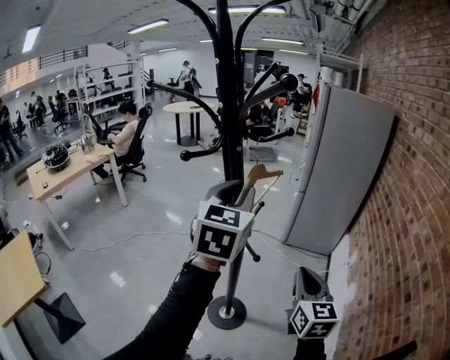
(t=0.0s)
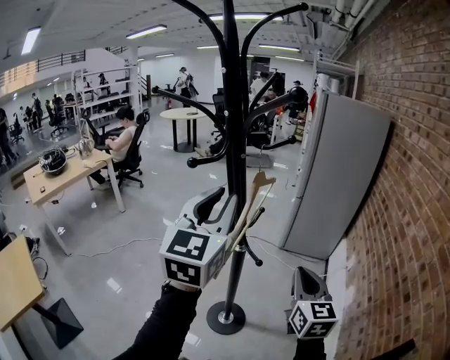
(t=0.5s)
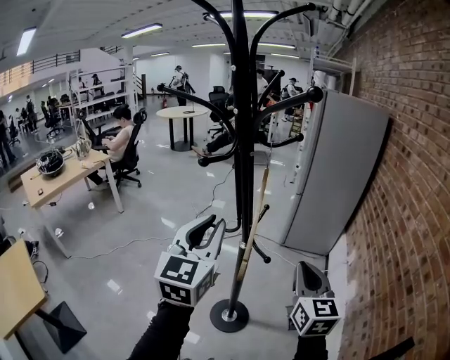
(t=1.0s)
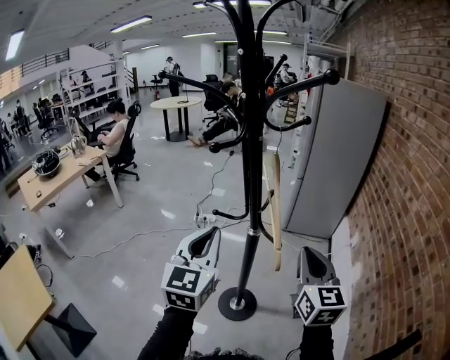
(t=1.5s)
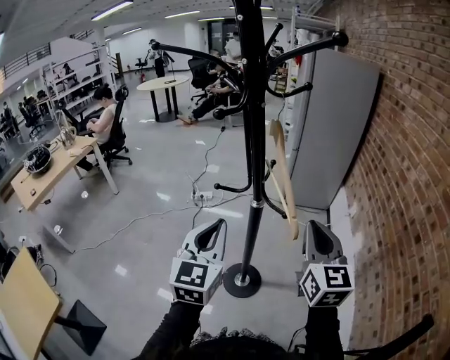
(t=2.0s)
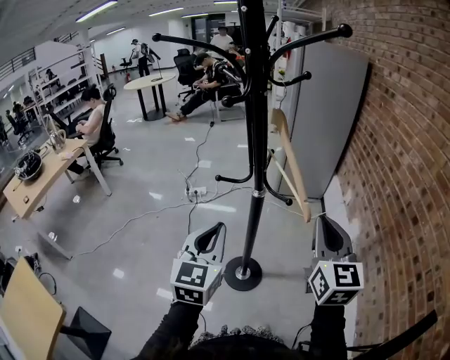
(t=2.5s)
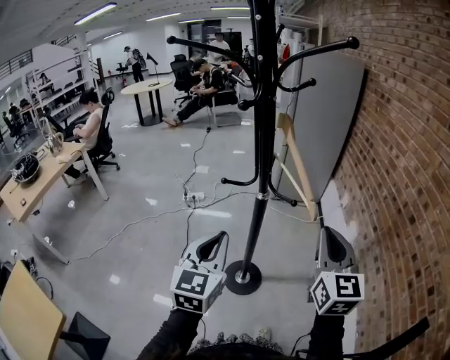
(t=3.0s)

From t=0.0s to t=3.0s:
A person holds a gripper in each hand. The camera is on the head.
From t=0.0s to t=1.5s: The right gripper goes some 5 cm to the left; the left gripper moves to the left, downward and backward, about 20 cm.
From t=1.5s to t=3.0s: The right gripper heads backward, covering some 10 cm. Meanwhile the left gripper is displaced downward and backward by about 10 cm.

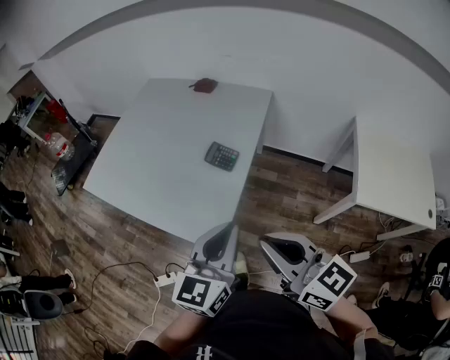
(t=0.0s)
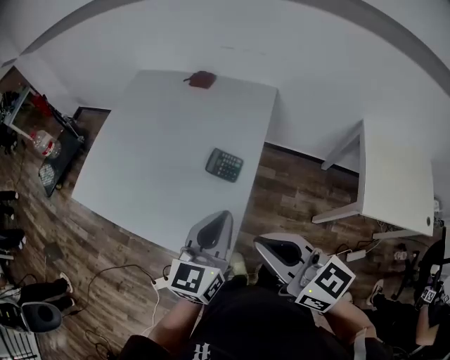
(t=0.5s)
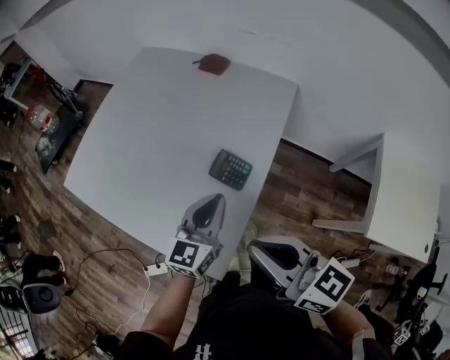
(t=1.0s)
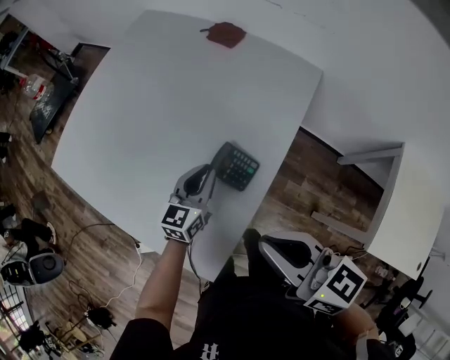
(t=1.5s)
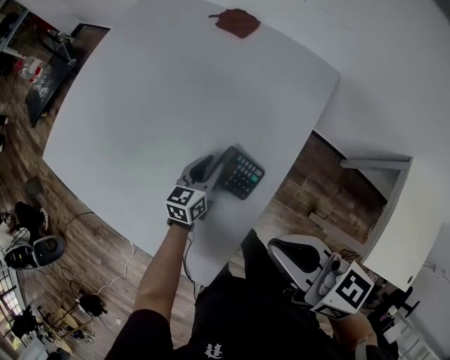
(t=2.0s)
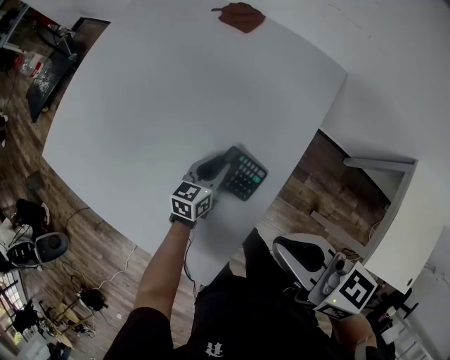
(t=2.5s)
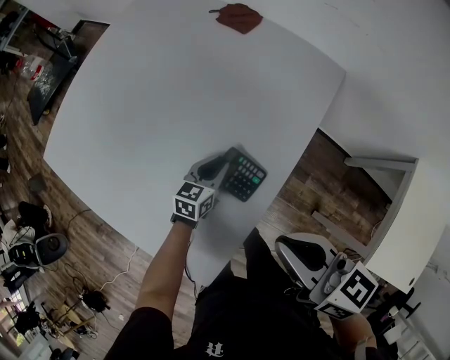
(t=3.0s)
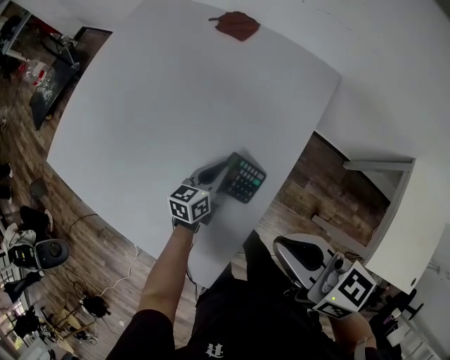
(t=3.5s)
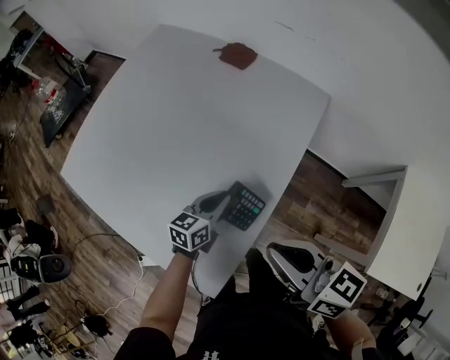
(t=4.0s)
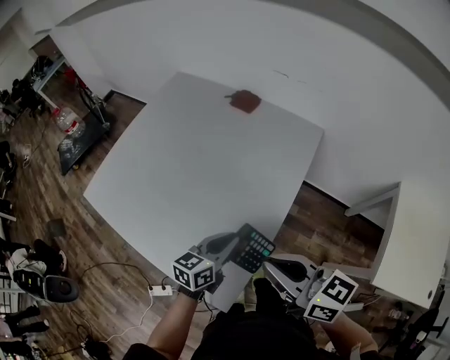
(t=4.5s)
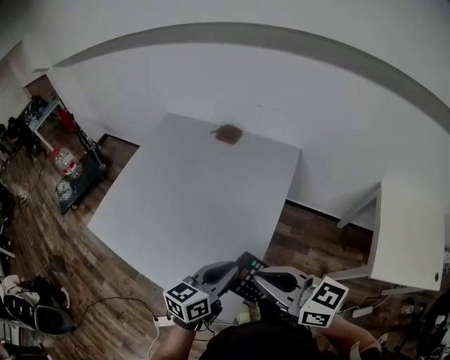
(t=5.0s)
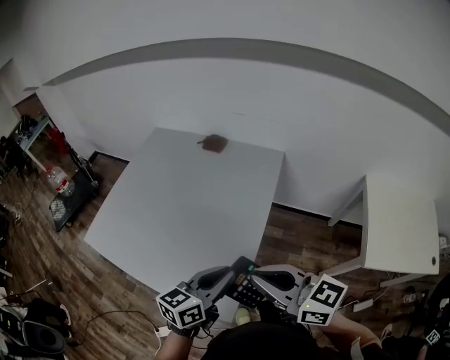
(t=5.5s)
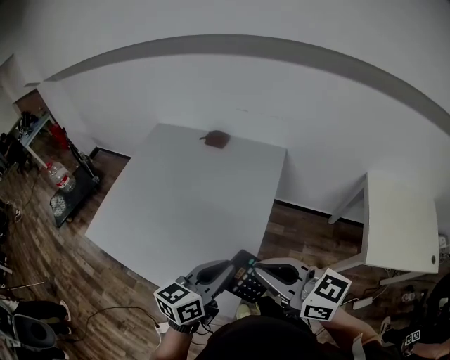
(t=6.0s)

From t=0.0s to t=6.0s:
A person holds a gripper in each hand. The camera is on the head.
From t=0.0s to t=2.0s: The left gripper shifts about 50 cm forward and downward, changes its angle by some 20 degrees, and opens. The right gripper shifts roughly 35 cm forward, and rotates some 20 degrees.
From t=2.0s to t=4.0s: The left gripper shifts roughly 10 cm upward and backward.
From t=4.0s to t=6.0s: The right gripper travels backward and upward by some 20 cm; the left gripper is displaced upward and backward by approximately 30 cm.

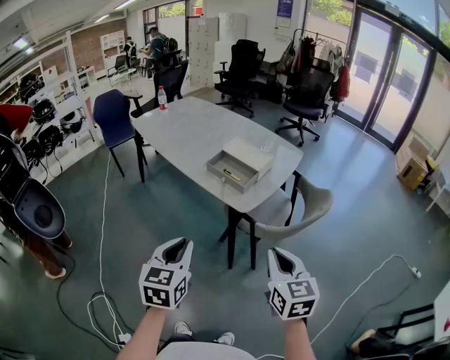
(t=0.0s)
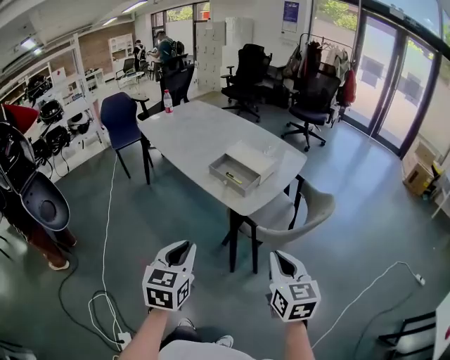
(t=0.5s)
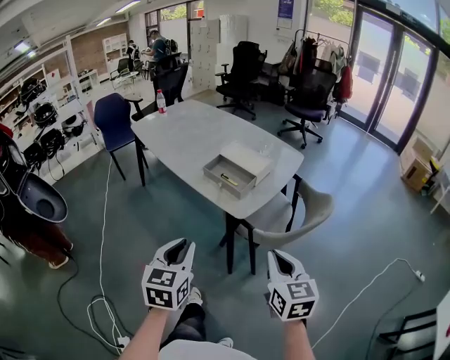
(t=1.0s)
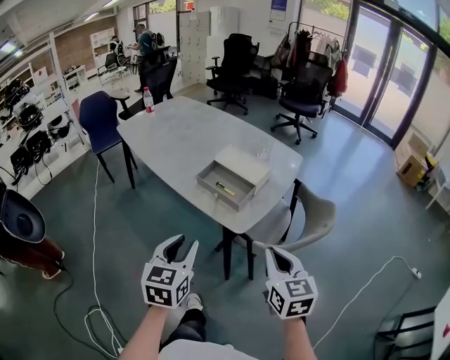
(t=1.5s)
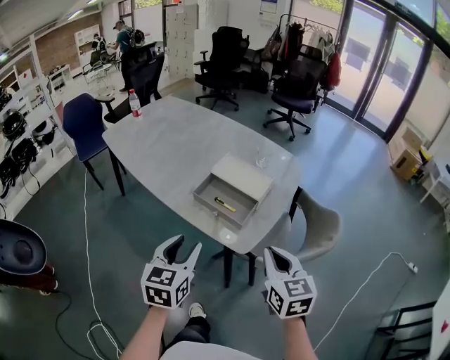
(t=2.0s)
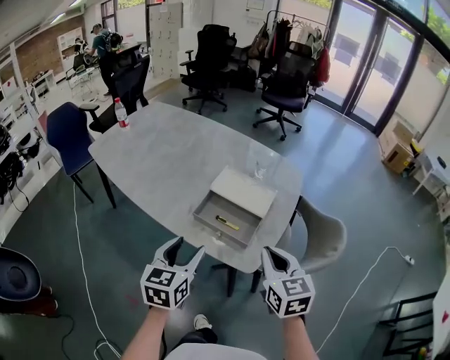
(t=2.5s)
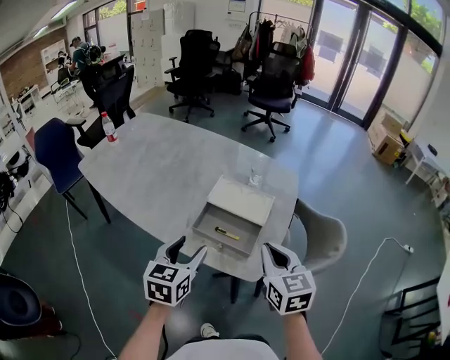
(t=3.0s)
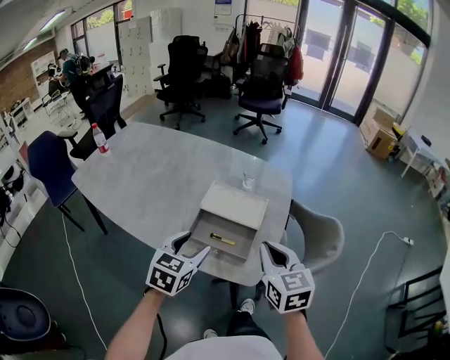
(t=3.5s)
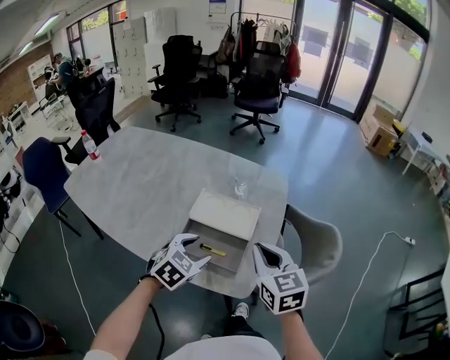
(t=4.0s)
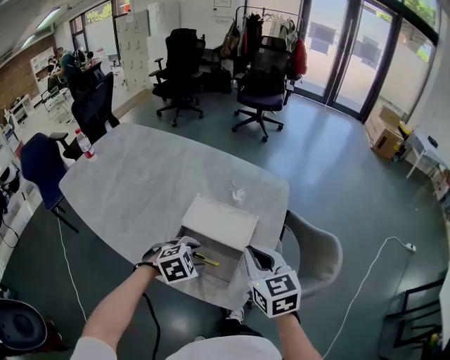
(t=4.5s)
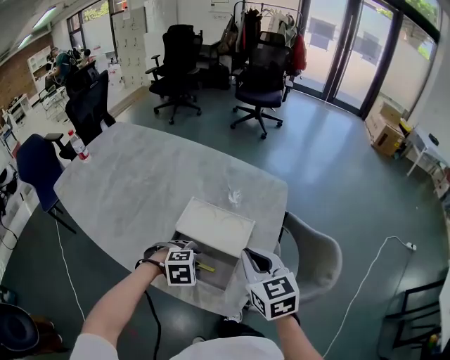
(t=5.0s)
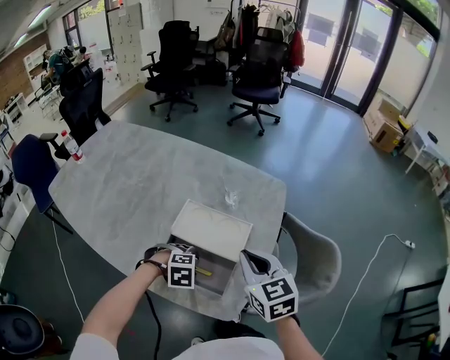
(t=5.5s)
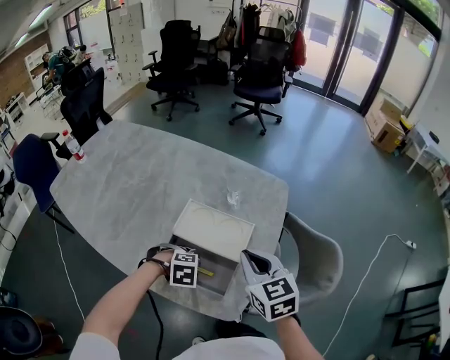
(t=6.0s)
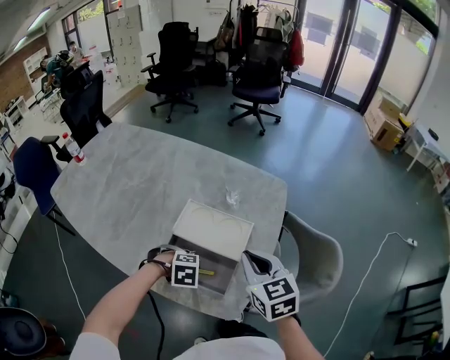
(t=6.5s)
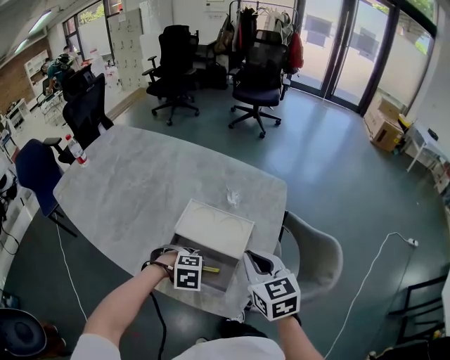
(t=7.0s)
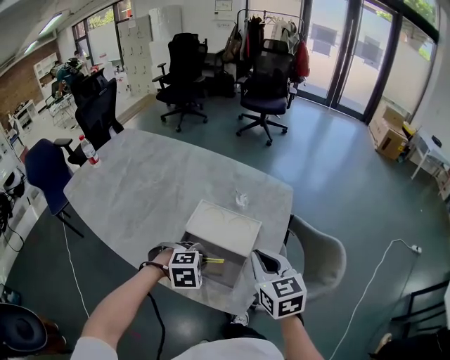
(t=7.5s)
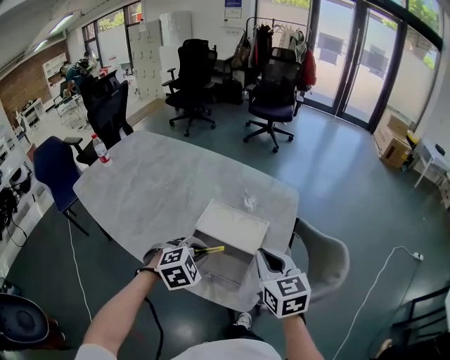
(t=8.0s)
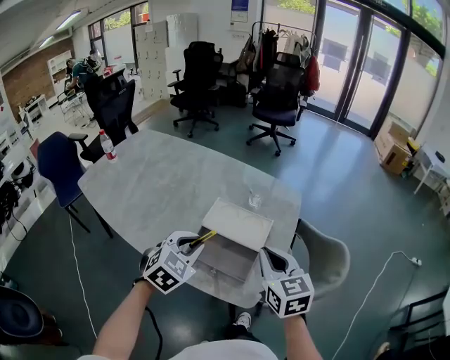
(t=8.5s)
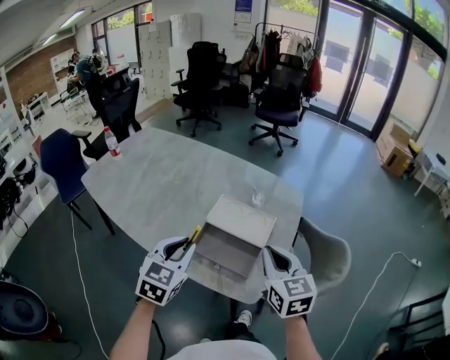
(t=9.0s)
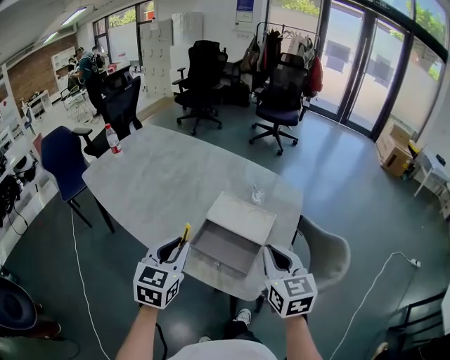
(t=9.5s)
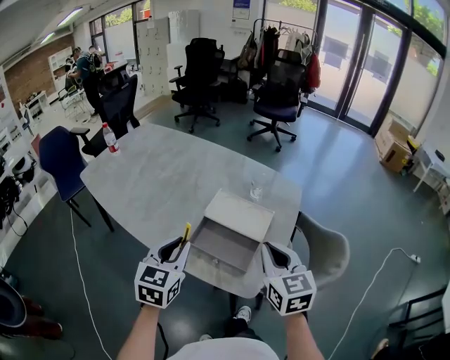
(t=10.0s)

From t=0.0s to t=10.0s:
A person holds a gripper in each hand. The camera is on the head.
From t=0.0s to t=2.0s: The two grippers go approximately 25 cm forward. The left gripper opens up.
From t=2.0s to t=4.0s: The two grippers go some 20 cm forward. The left gripper swivels some 50 degrees.
From t=4.0s to t=6.0s: The right gripper moves some 10 cm. The left gripper moves downward, approximately 15 cm, tilts its fingers roughly 30 degrees downward, and closes its fingers.
From t=6.0s to t=8.0s: The right gripper changes place by some 5 cm, while the left gripper is displaced upward by roughly 15 cm, and rotates approximately 40 degrees.
From t=8.0s to t=10.0s: The right gripper moves roughly 5 cm; the left gripper travels to the left, upward and backward by some 15 cm, and angles its fingers upward, by some 30 degrees.

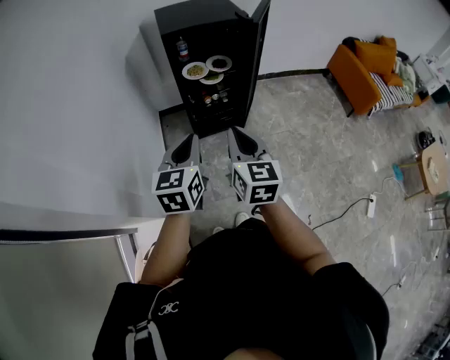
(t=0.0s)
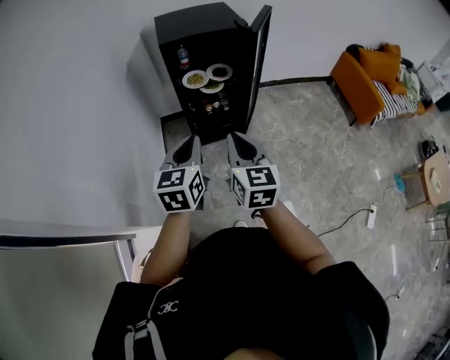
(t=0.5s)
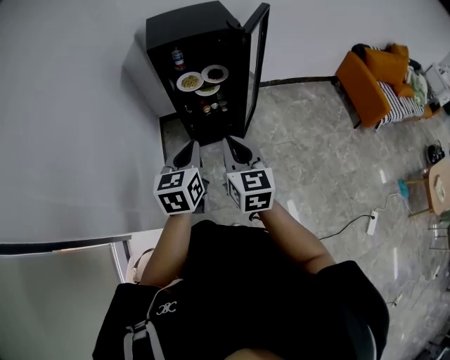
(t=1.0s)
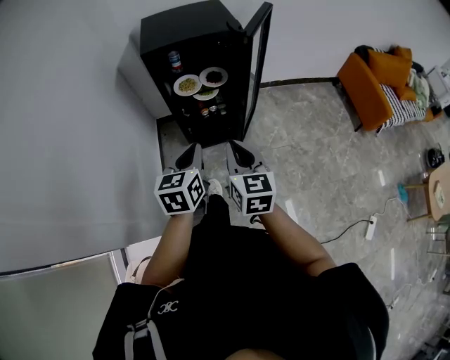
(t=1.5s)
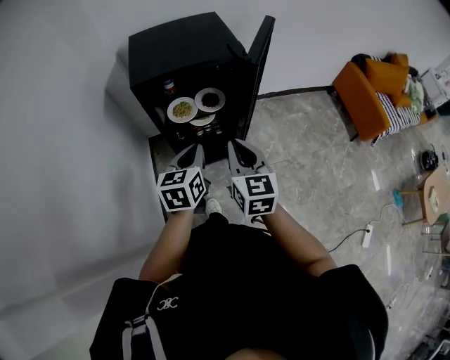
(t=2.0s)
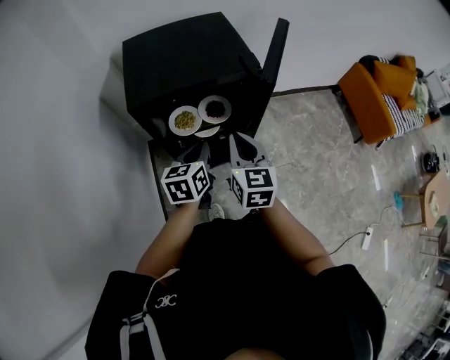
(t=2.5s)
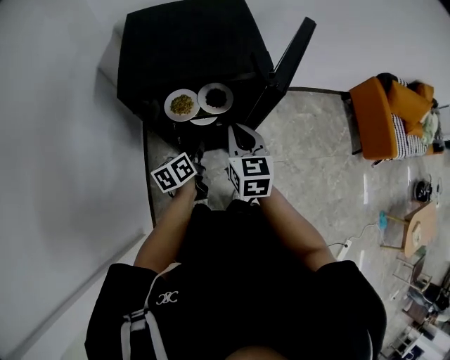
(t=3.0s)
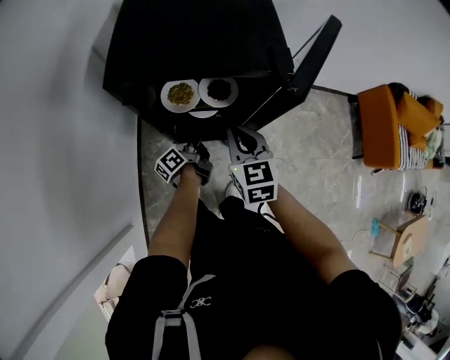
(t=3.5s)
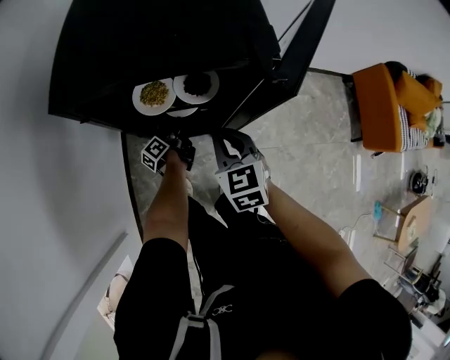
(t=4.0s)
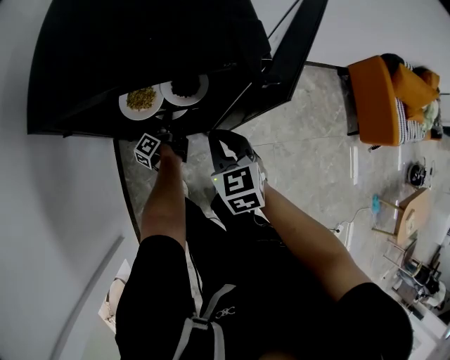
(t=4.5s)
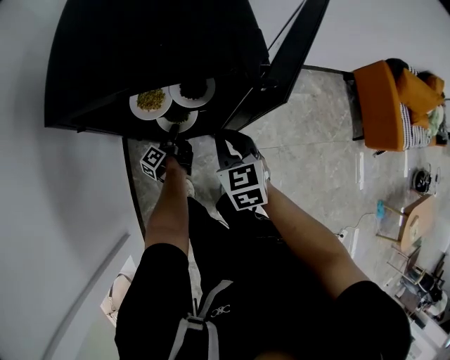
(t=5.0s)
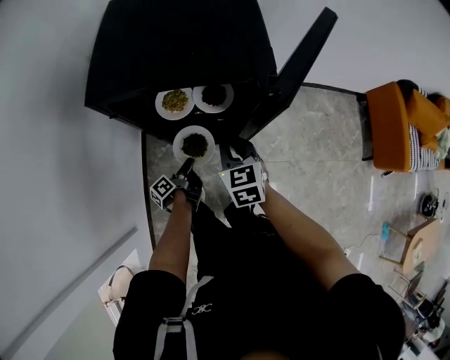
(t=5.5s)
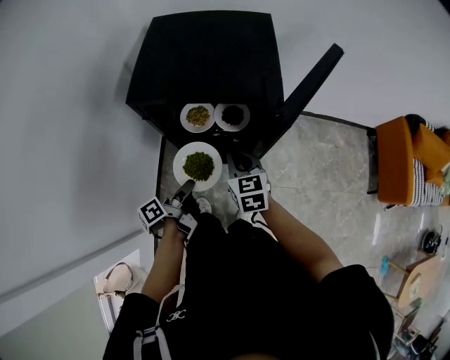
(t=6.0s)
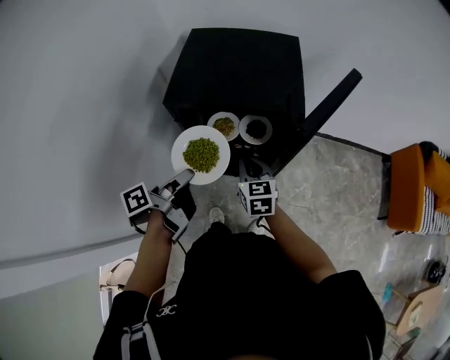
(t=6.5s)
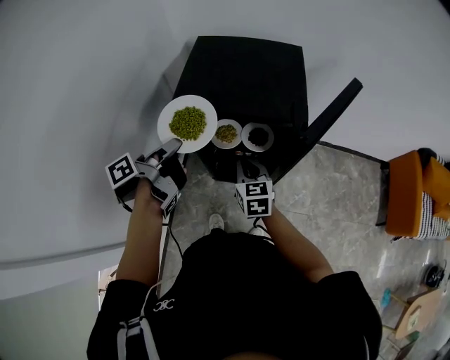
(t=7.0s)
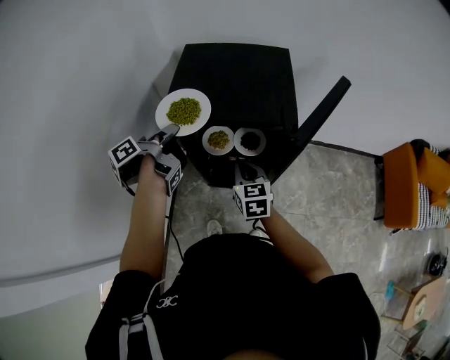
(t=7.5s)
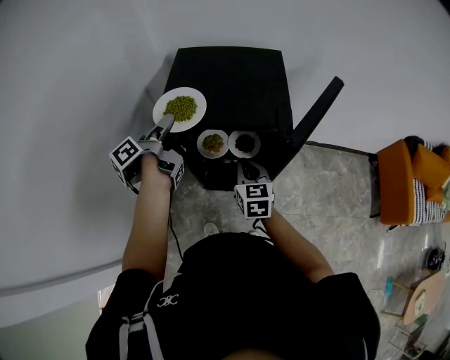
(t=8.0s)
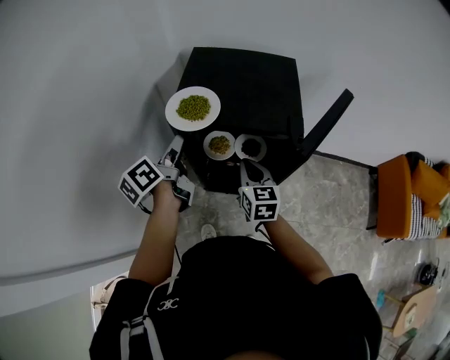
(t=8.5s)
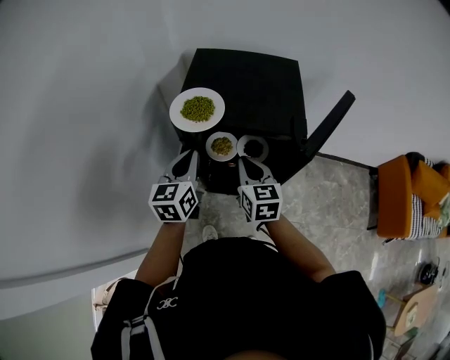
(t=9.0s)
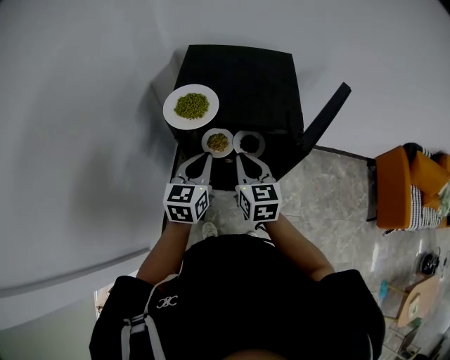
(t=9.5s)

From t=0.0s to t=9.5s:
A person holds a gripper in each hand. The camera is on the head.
From t=0.0s to t=2.0s: Both grippers travel together forward, some 30 cm.
From t=2.0s to t=4.0s: The right gripper heads forward and downward, covering some 25 cm, and rotates approximately 30 degrees, while the left gripper shifts some 40 cm downward and forward, rolls counterclockwise, seen from behind, by about 70 degrees, and opens.
From t=4.0s to t=5.5s: The left gripper goes approximately 15 cm backward, and closes its fingers.
From t=5.5s to t=7.5s: The right gripper shifts roughly 10 cm upward and to the left. Meanwhile the left gripper goes roughly 40 cm upward.
From t=7.5s to t=9.5s: The right gripper travels upward by some 5 cm. The left gripper goes about 10 cm to the right and backward, rotates around the line of its fingers by roughly 80 degrees, clockwise from behind, and opens, then closes again.
